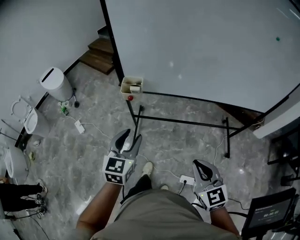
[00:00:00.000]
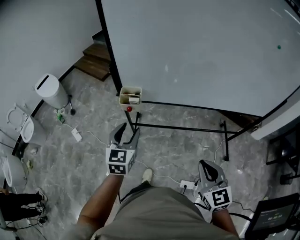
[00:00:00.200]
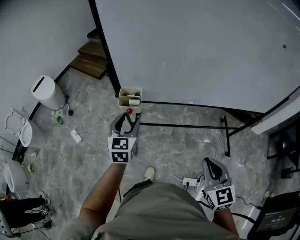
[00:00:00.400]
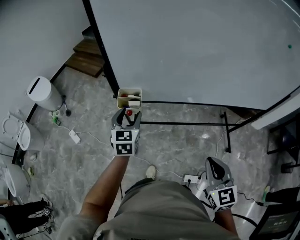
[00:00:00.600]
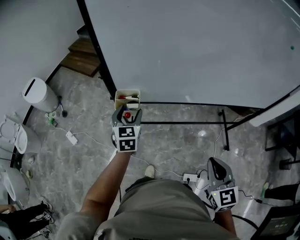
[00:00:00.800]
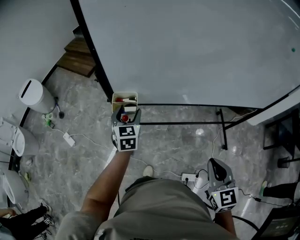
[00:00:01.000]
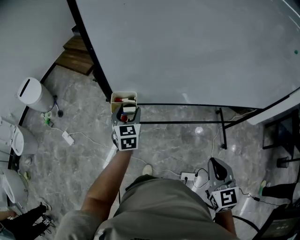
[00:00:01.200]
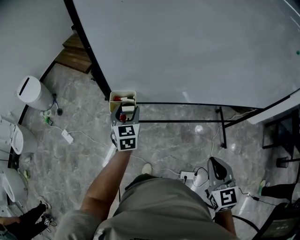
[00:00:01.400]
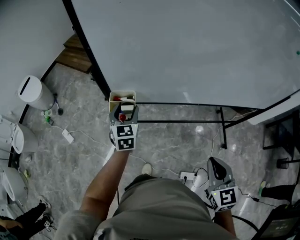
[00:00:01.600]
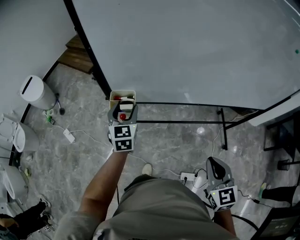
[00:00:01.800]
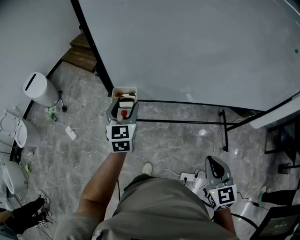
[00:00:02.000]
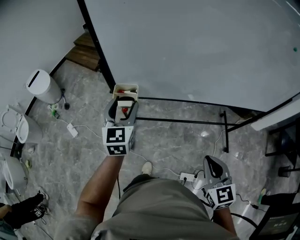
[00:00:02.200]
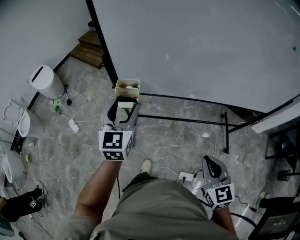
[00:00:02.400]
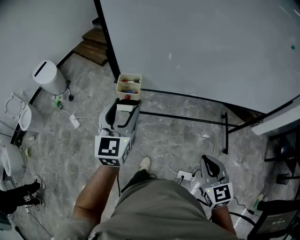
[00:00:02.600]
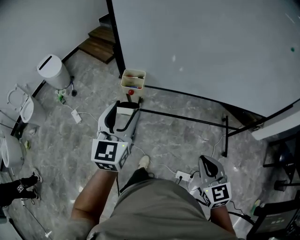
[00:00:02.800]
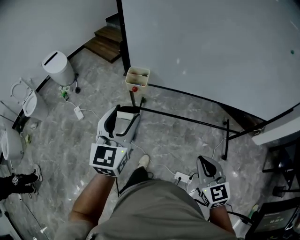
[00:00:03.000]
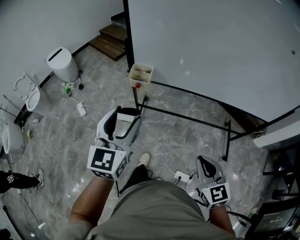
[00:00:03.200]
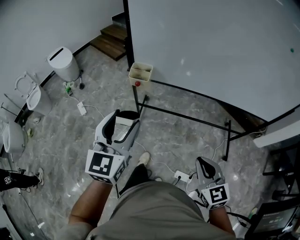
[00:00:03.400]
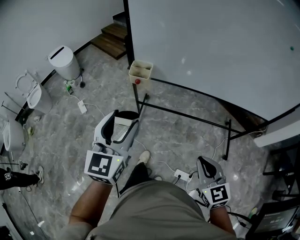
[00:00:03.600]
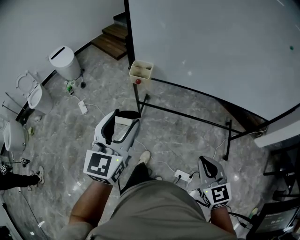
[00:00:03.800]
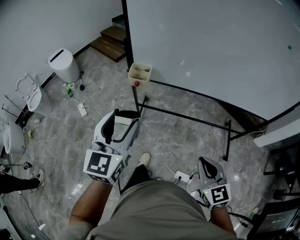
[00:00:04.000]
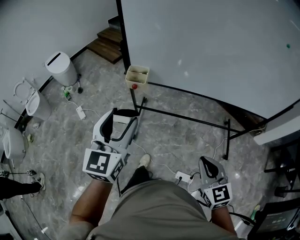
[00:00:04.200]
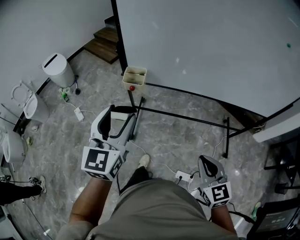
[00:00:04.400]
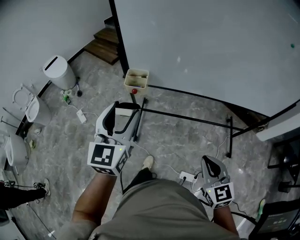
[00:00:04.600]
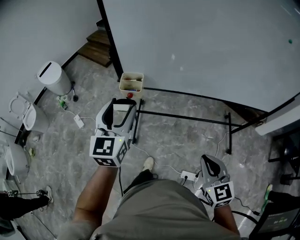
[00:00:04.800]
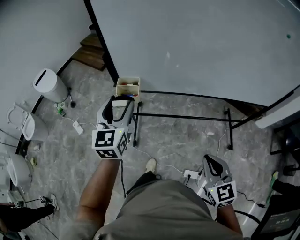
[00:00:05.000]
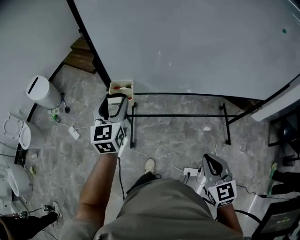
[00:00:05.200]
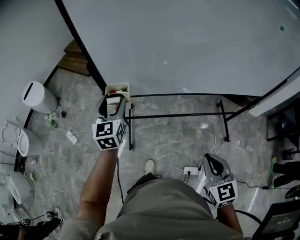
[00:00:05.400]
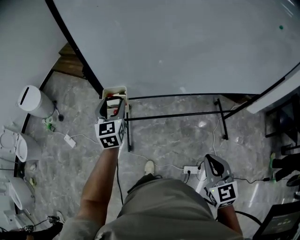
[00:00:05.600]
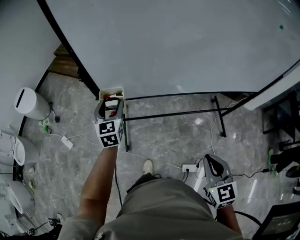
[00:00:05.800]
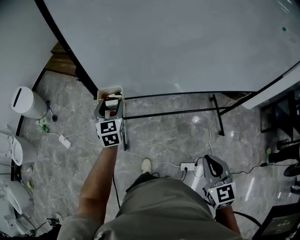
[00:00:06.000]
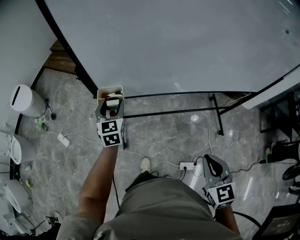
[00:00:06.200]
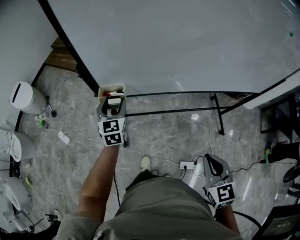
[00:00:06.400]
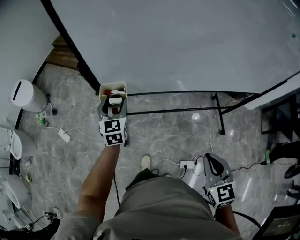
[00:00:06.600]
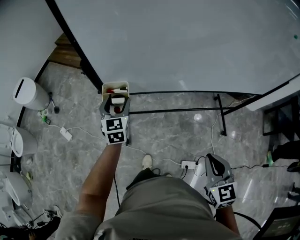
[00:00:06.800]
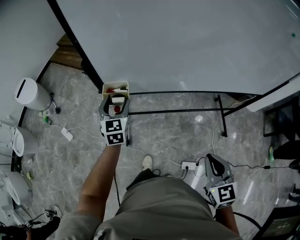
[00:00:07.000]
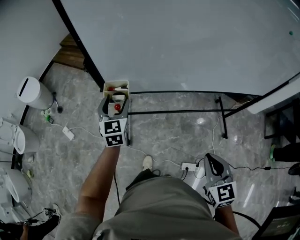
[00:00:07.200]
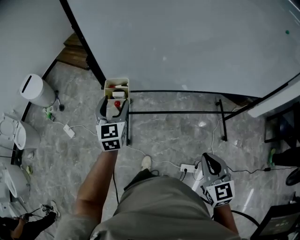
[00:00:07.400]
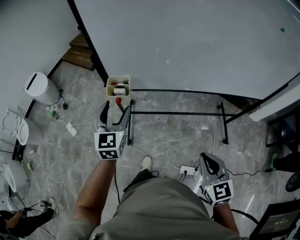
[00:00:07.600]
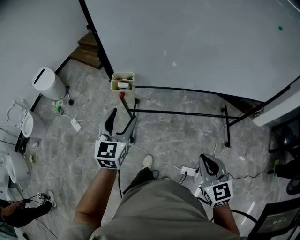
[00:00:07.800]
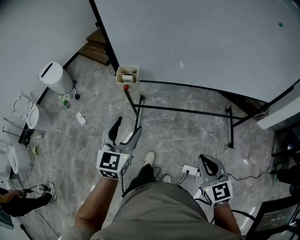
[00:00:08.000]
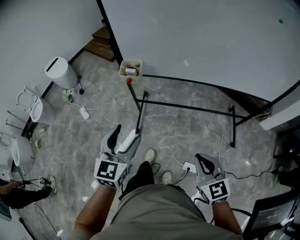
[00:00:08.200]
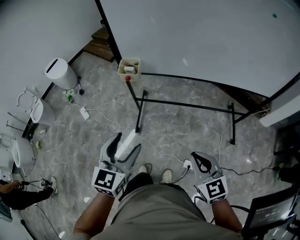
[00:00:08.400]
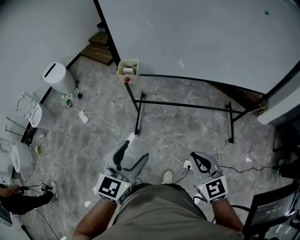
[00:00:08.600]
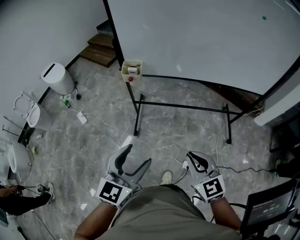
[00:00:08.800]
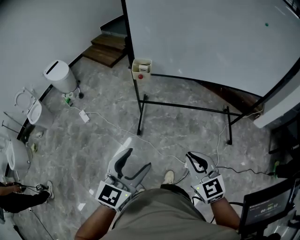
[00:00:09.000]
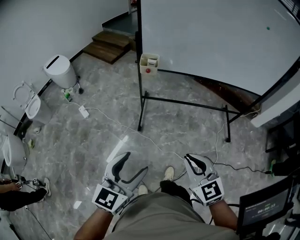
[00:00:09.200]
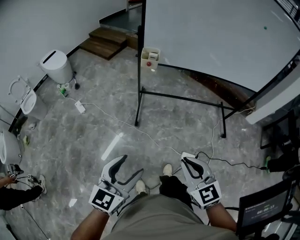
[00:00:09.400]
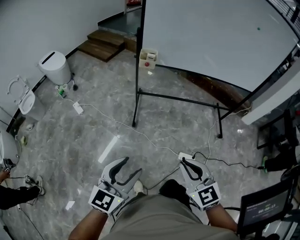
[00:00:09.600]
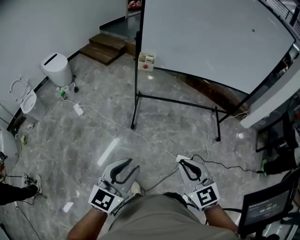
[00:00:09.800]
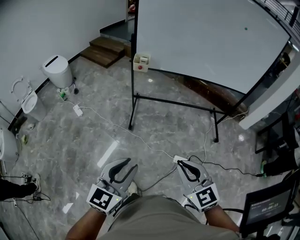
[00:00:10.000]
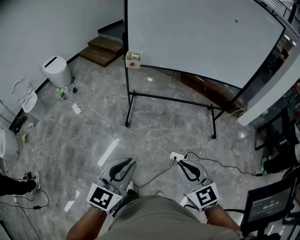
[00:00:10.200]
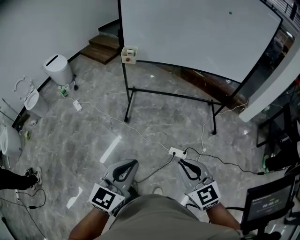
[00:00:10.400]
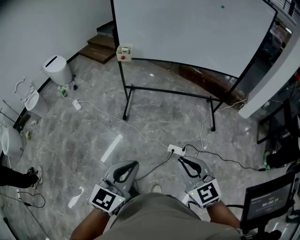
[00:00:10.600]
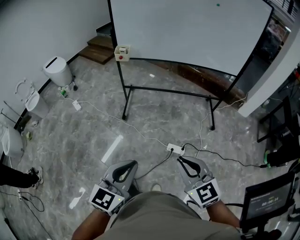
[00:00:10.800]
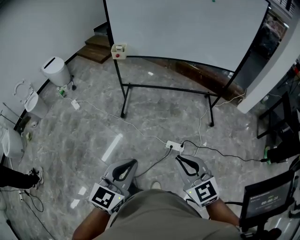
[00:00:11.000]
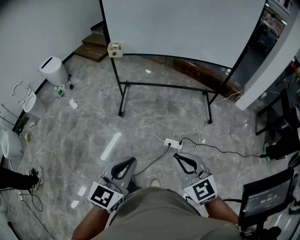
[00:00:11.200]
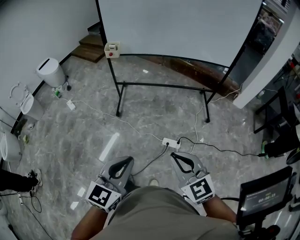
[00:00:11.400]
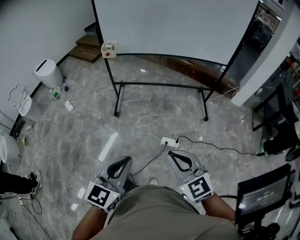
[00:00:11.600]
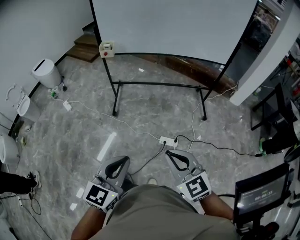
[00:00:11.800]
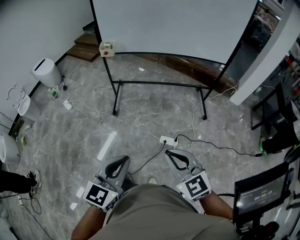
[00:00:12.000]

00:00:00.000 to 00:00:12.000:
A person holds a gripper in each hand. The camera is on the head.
00:00:00.000 to 00:00:01.600: The left gripper goes about 30 cm forward; the right gripper is displaced forward by roughly 15 cm.
00:00:01.600 to 00:00:03.000: The right gripper moves backward, some 10 cm. Meanwhile the left gripper moves backward and upward, about 30 cm.
00:00:03.000 to 00:00:04.400: The left gripper moves roughly 10 cm backward and comes back.
00:00:04.400 to 00:00:06.000: The left gripper heads forward and downward, covering approximately 35 cm. The right gripper is displaced forward by roughly 10 cm, and changes its angle by approximately 20 degrees.
00:00:06.000 to 00:00:07.600: The left gripper heads backward and upward, covering roughly 15 cm.
00:00:07.600 to 00:00:09.000: The right gripper goes approximately 20 cm backward and to the left, while the left gripper shifts roughly 40 cm backward.
00:00:09.000 to 00:00:10.400: The grippers both shift backward by about 25 cm. The left gripper closes.
00:00:10.400 to 00:00:12.000: Both grippers move to the right, roughly 5 cm.

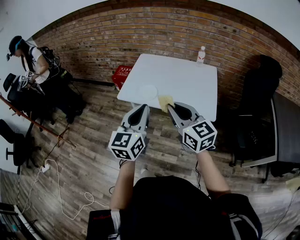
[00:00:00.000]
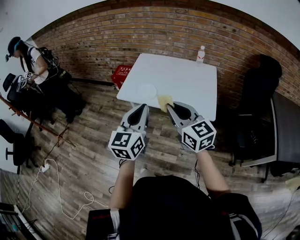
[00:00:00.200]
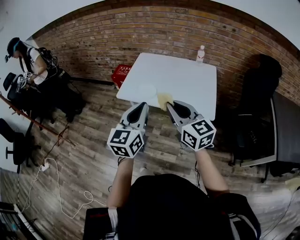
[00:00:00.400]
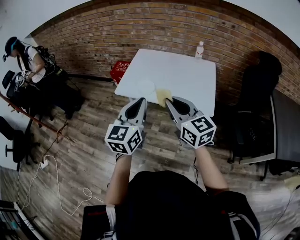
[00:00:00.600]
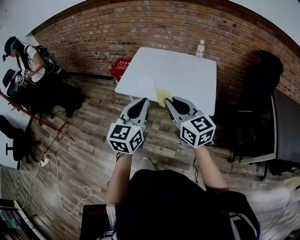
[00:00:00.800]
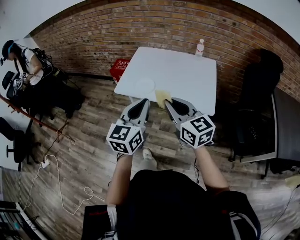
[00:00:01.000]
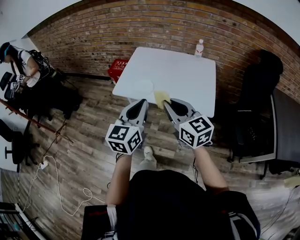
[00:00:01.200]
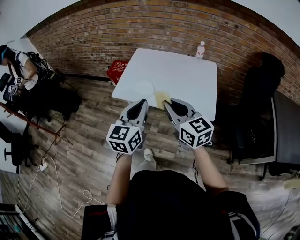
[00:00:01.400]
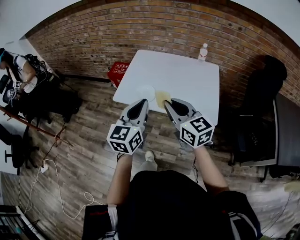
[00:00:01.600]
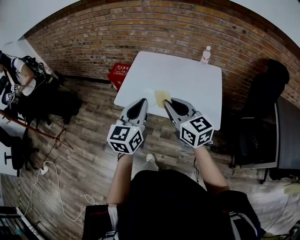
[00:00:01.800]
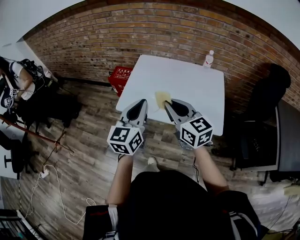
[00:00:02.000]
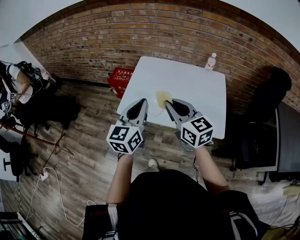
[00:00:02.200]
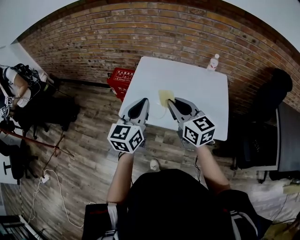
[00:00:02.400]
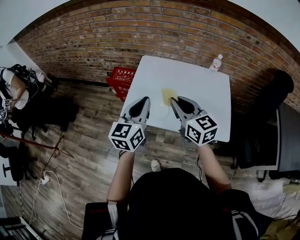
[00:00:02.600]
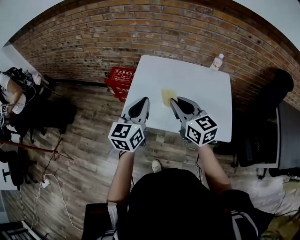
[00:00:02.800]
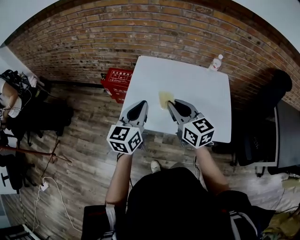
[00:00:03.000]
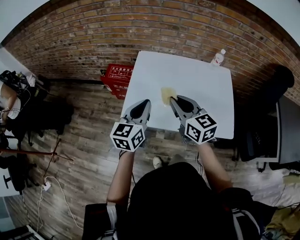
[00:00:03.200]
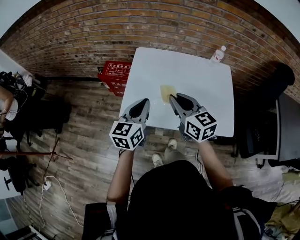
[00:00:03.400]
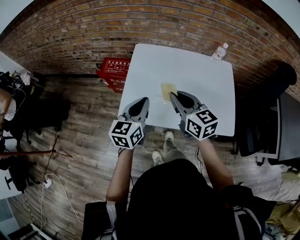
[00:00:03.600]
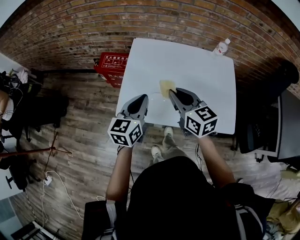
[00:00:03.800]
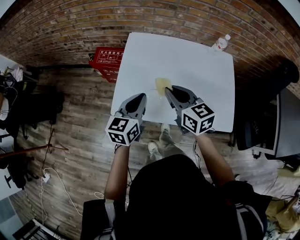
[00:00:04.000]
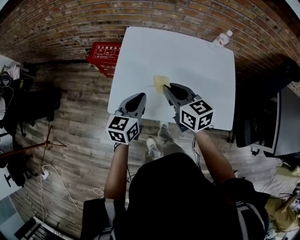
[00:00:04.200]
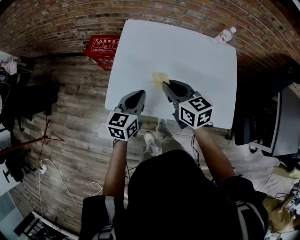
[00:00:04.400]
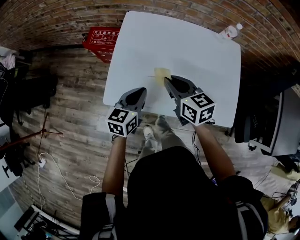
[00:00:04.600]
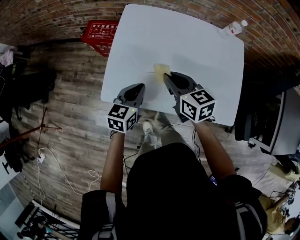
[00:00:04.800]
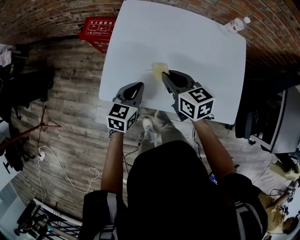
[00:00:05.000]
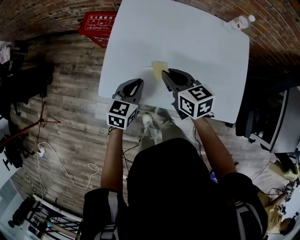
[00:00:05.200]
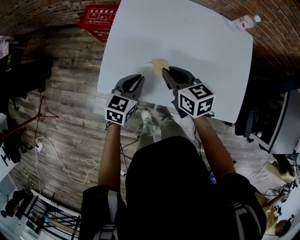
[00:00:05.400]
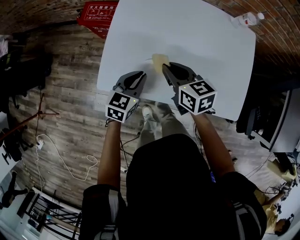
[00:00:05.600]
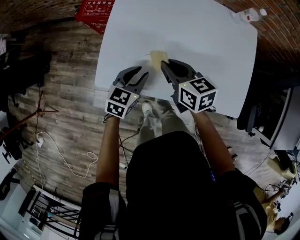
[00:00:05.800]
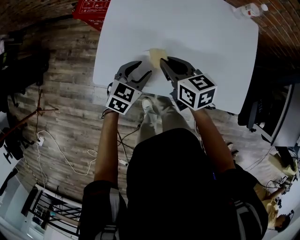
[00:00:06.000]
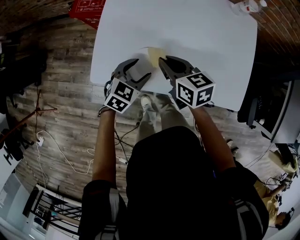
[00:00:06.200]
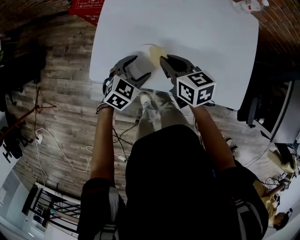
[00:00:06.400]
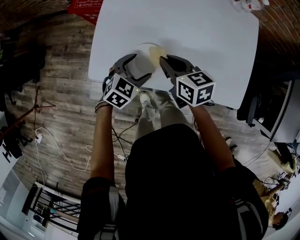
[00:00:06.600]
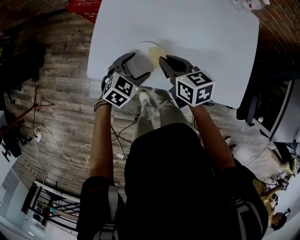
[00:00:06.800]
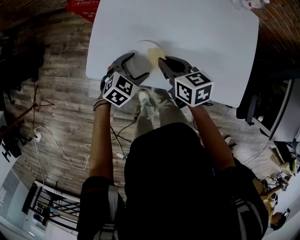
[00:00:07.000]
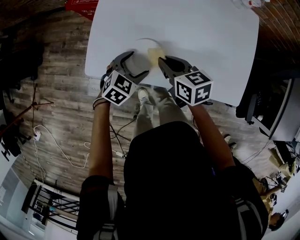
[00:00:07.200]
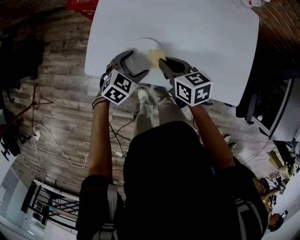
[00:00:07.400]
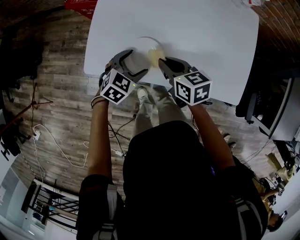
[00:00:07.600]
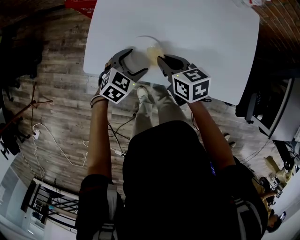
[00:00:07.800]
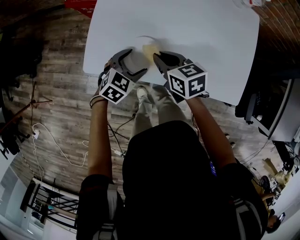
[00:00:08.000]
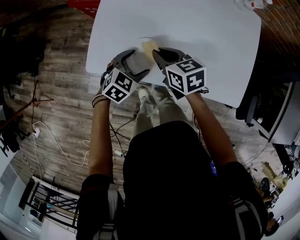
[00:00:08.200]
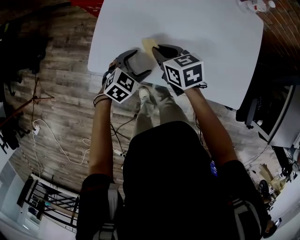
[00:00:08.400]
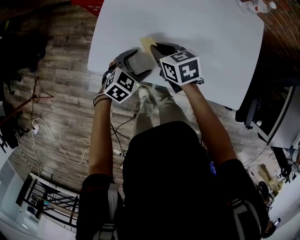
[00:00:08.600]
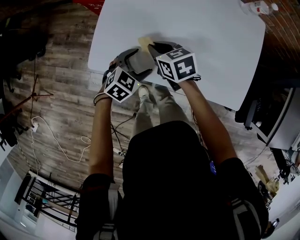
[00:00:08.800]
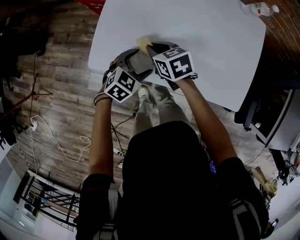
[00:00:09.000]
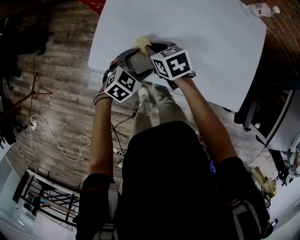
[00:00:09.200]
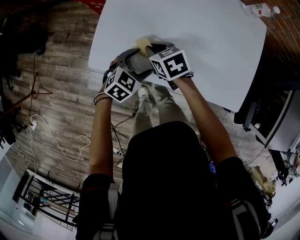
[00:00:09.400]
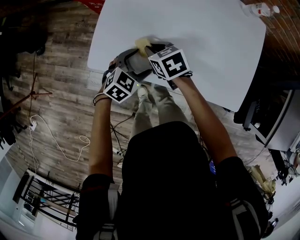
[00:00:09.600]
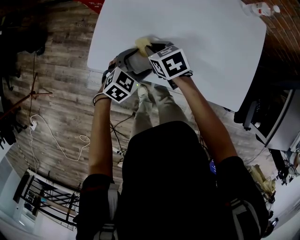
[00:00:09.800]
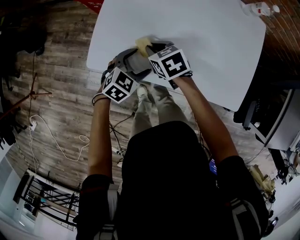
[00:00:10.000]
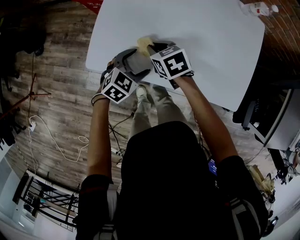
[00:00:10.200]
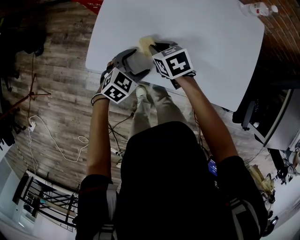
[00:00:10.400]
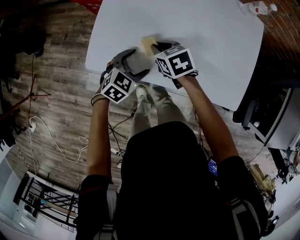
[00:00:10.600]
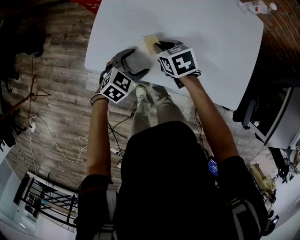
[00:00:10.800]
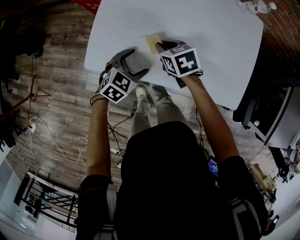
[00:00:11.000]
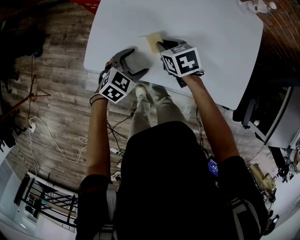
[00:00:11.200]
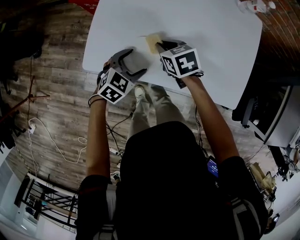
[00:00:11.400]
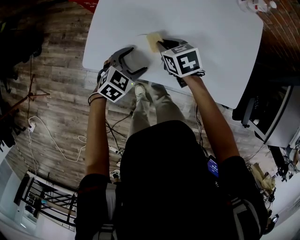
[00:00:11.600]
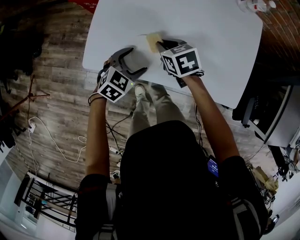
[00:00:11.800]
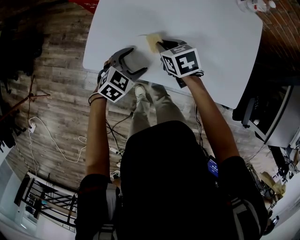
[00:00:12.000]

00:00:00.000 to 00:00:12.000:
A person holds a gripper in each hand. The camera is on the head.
00:00:00.000 to 00:00:01.600: Both grippers travel together forward, about 10 cm.
00:00:01.600 to 00:00:03.000: Both grippers travel together forward and to the left, roughly 25 cm.
00:00:03.000 to 00:00:04.400: The left gripper travels downward by some 15 cm; the right gripper shifts some 15 cm downward and forward.
00:00:04.400 to 00:00:06.000: Both grippers travel together downward, roughly 10 cm. The left gripper changes its angle by about 30 degrees, and opens up.
00:00:06.000 to 00:00:07.600: Both grippers travel together downward, about 5 cm. The left gripper opens up.
00:00:07.600 to 00:00:09.000: The right gripper is displaced to the left by about 5 cm.
00:00:09.000 to 00:00:12.000: The grippers stay close to where they were, moving slightly.
